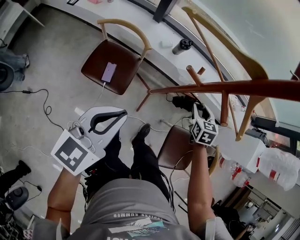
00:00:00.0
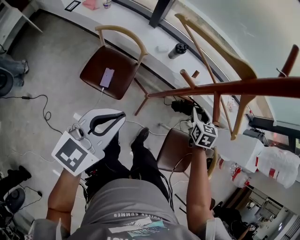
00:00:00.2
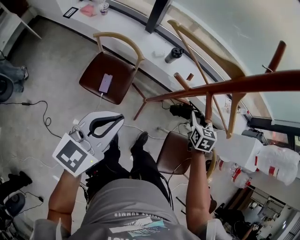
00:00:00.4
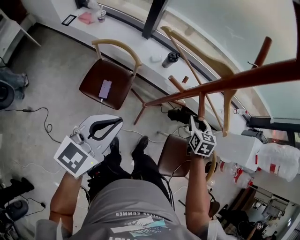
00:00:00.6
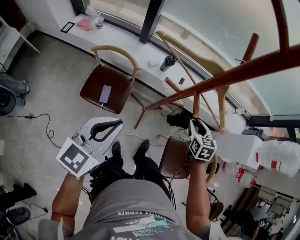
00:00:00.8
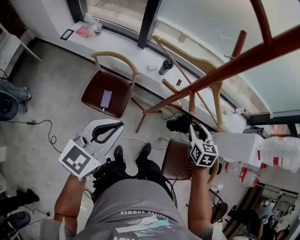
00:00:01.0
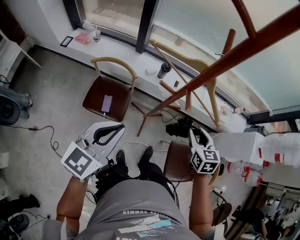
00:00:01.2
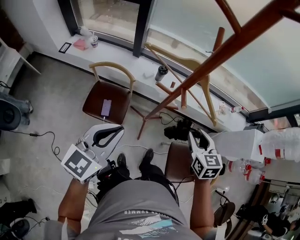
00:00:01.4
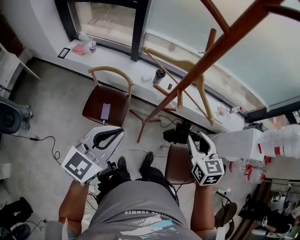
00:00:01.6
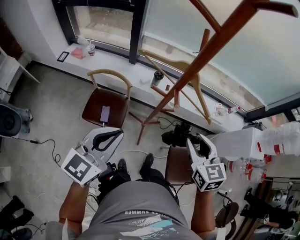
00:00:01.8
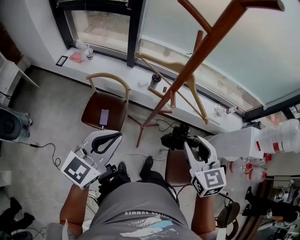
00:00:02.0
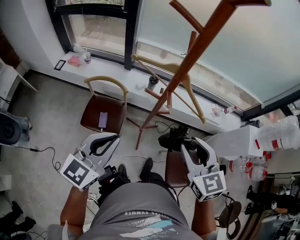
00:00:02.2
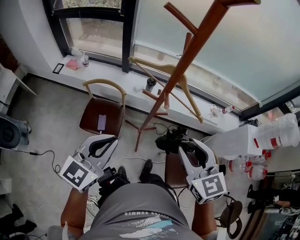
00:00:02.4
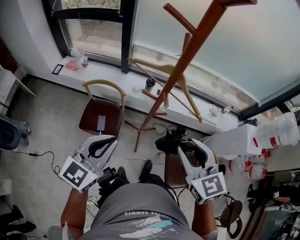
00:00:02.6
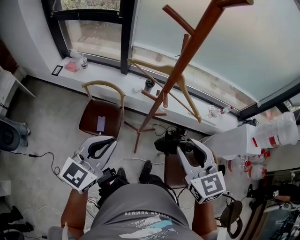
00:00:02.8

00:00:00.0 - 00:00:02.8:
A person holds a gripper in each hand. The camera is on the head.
00:00:00.0 - 00:00:01.4: The right gripper travels upward and backward by roughly 25 cm, while the left gripper shifts about 10 cm upward.
00:00:01.4 - 00:00:02.8: The left gripper ends up approximately 5 cm from where it was; the right gripper heads upward and backward, covering roughly 20 cm.

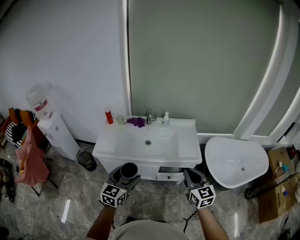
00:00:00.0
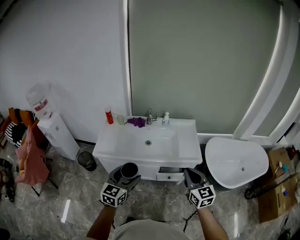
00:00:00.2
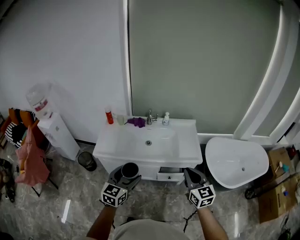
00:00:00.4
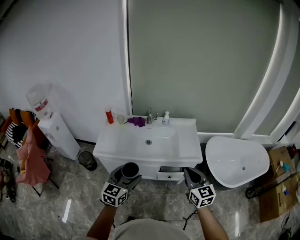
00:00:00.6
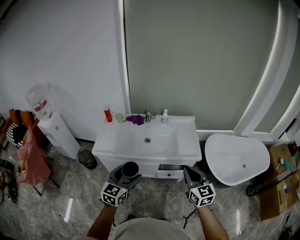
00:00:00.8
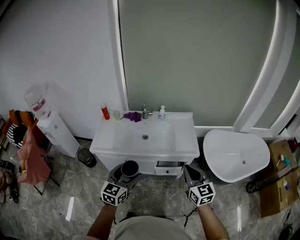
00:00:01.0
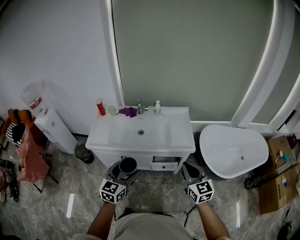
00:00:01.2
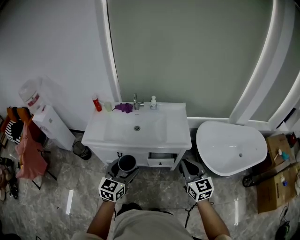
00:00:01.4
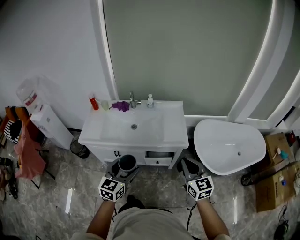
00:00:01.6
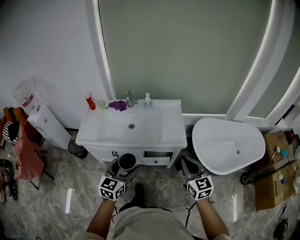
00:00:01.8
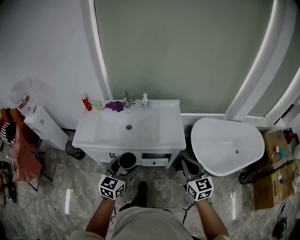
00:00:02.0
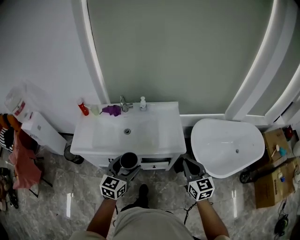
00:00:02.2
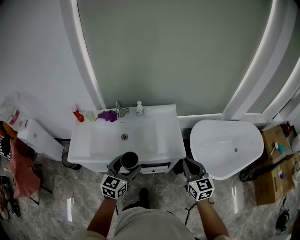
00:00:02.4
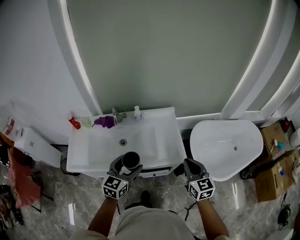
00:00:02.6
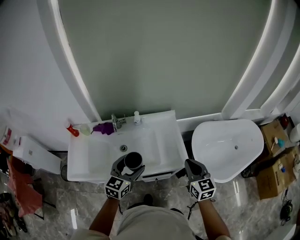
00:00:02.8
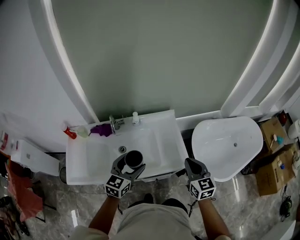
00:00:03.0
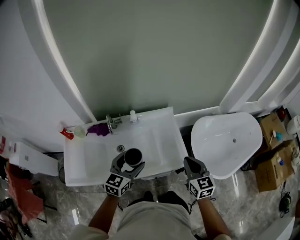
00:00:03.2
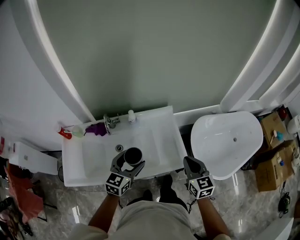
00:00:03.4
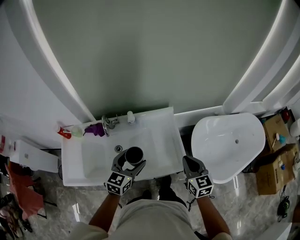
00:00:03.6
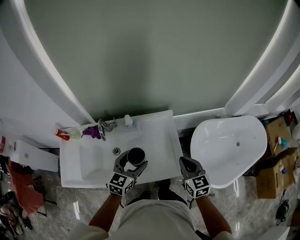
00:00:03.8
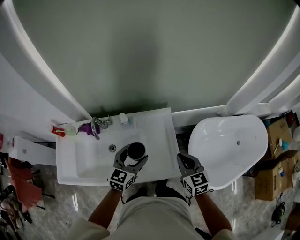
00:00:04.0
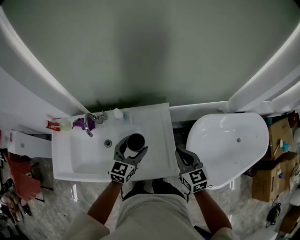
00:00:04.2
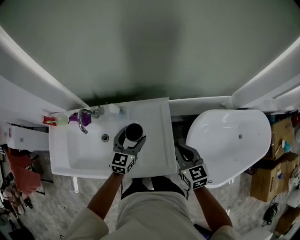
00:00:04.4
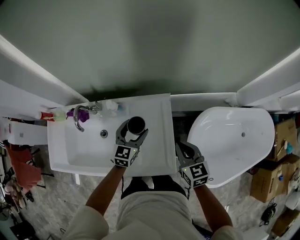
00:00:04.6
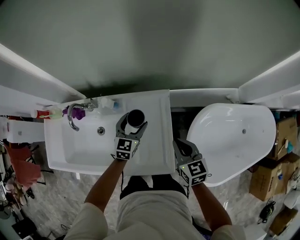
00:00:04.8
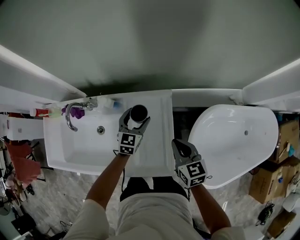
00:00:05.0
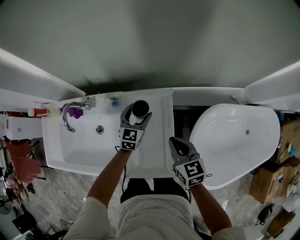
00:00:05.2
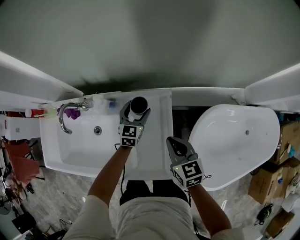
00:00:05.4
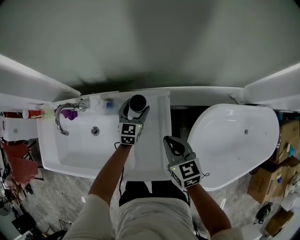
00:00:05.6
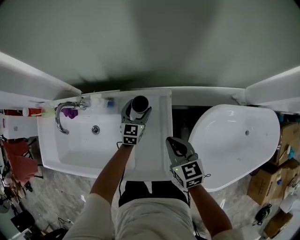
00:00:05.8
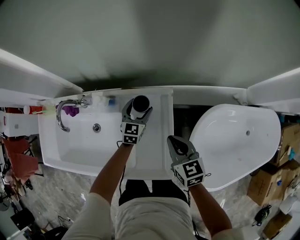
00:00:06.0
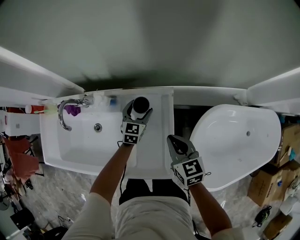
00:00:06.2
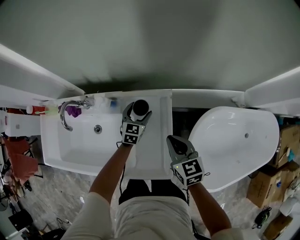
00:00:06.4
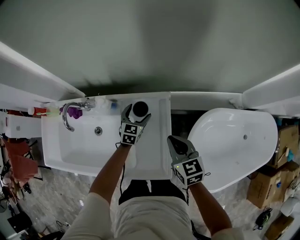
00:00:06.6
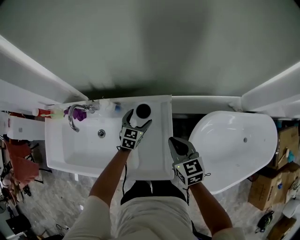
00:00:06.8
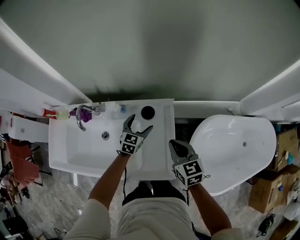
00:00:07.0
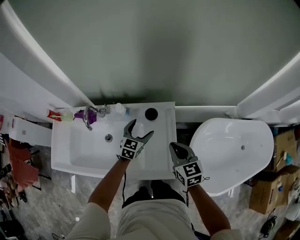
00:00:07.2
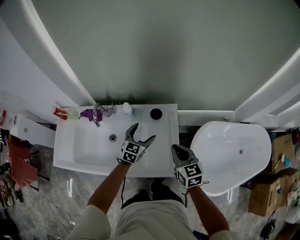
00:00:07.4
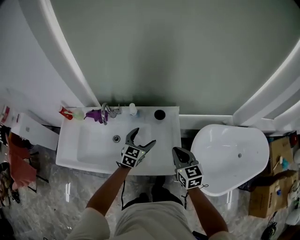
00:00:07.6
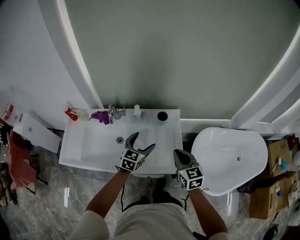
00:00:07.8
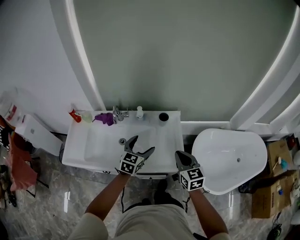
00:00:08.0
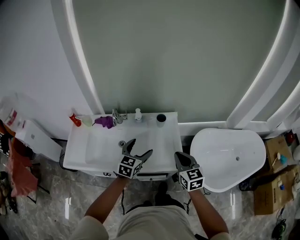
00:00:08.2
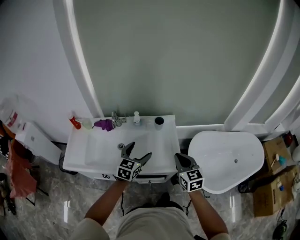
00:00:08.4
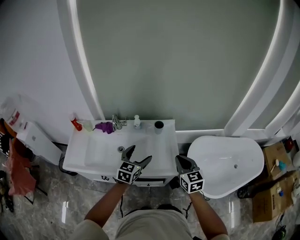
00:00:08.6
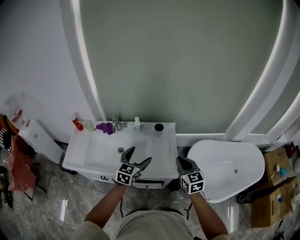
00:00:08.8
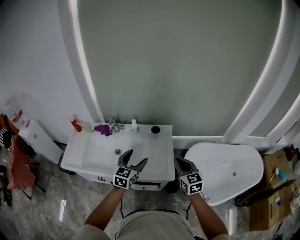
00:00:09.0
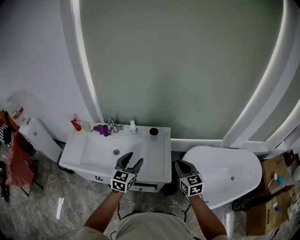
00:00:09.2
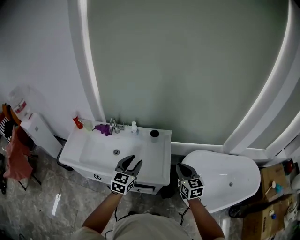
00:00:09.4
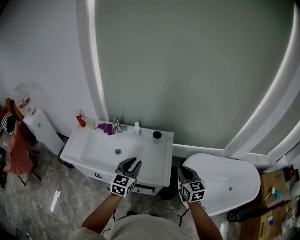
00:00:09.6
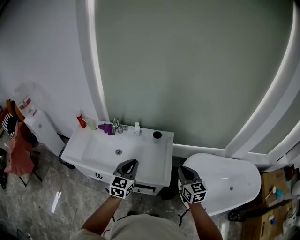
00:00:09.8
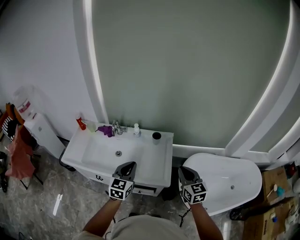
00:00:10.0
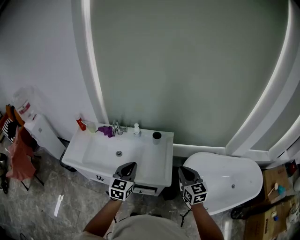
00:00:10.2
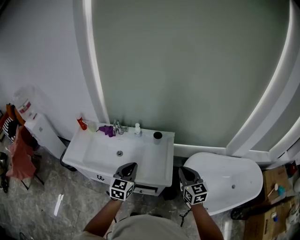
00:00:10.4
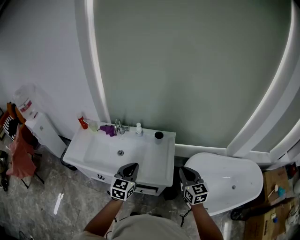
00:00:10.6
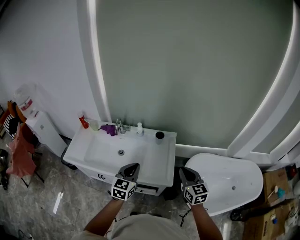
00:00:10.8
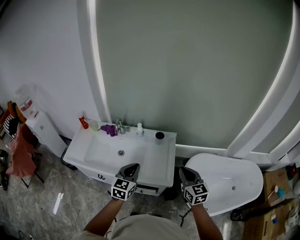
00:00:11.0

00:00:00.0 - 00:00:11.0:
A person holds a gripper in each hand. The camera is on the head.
00:00:00.0 - 00:00:01.6: Both grippers move to the right, about 15 cm.
00:00:01.6 - 00:00:03.2: Both grippers move forward, approximately 30 cm.
00:00:03.2 - 00:00:04.8: The left gripper travels forward, downward and to the right by some 35 cm, while the right gripper is displaced forward and downward by approximately 25 cm, and rotates roughly 20 degrees.
00:00:04.8 - 00:00:06.2: The right gripper changes place by roughly 5 cm. The left gripper is displaced downward and forward by some 15 cm.
00:00:06.2 - 00:00:07.8: Both grippers move backward, upward and to the left, some 30 cm.
00:00:07.8 - 00:00:09.4: The left gripper moves backward and upward, about 20 cm, and closes up. The right gripper travels to the right, backward and upward by some 15 cm.
00:00:09.4 - 00:00:11.0: The left gripper closes up.

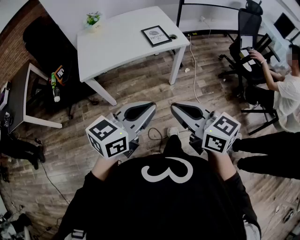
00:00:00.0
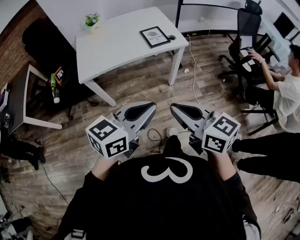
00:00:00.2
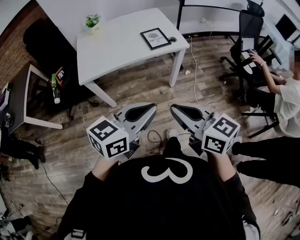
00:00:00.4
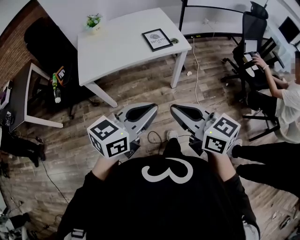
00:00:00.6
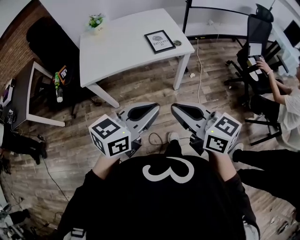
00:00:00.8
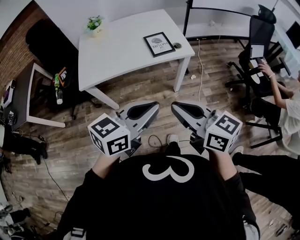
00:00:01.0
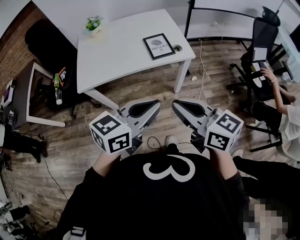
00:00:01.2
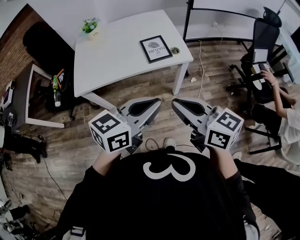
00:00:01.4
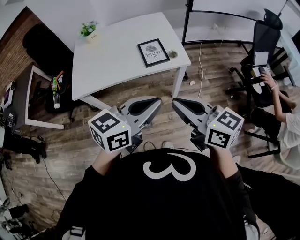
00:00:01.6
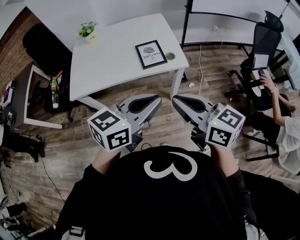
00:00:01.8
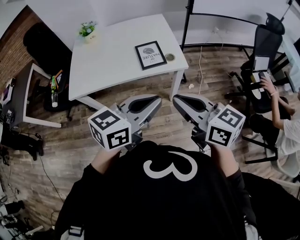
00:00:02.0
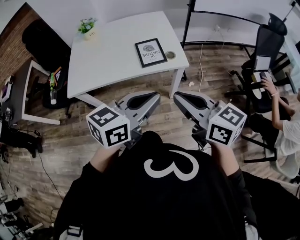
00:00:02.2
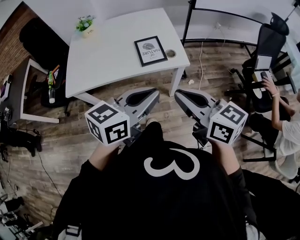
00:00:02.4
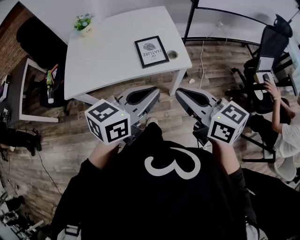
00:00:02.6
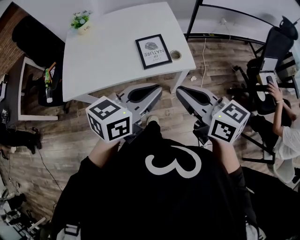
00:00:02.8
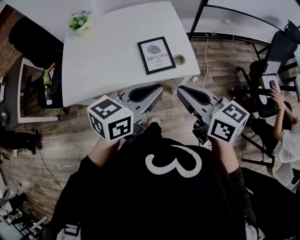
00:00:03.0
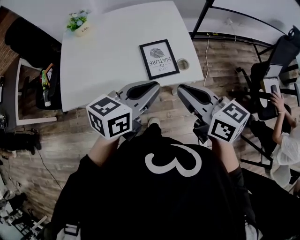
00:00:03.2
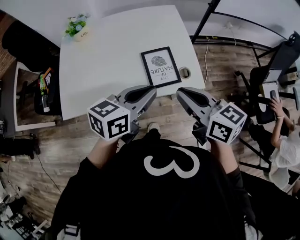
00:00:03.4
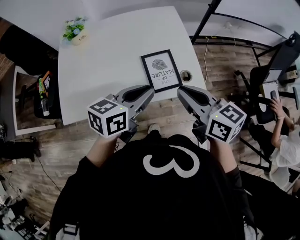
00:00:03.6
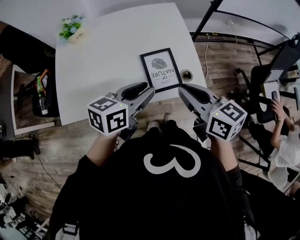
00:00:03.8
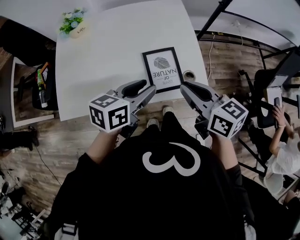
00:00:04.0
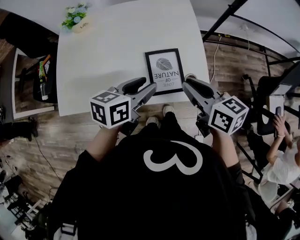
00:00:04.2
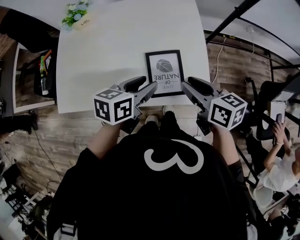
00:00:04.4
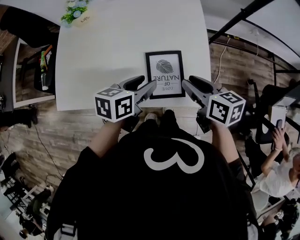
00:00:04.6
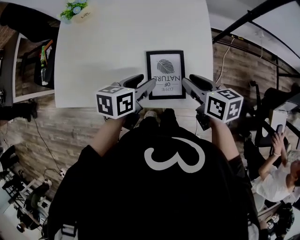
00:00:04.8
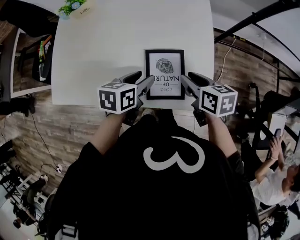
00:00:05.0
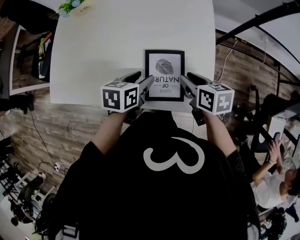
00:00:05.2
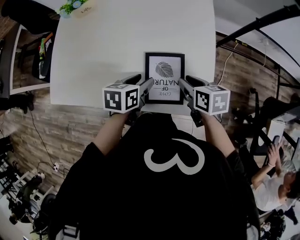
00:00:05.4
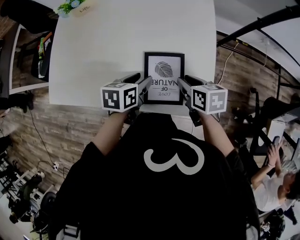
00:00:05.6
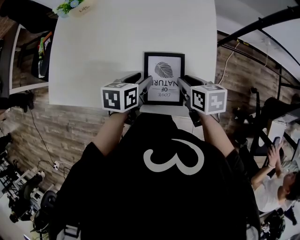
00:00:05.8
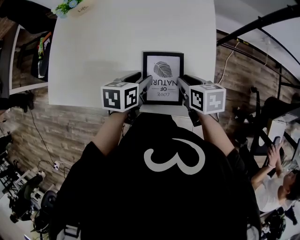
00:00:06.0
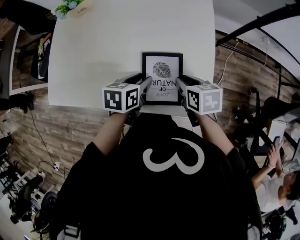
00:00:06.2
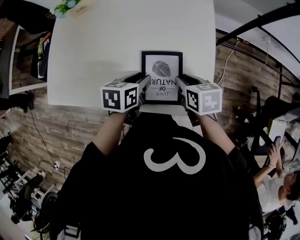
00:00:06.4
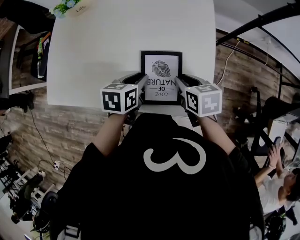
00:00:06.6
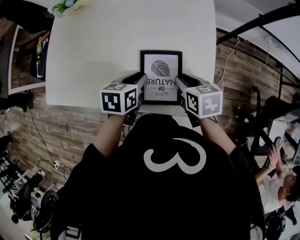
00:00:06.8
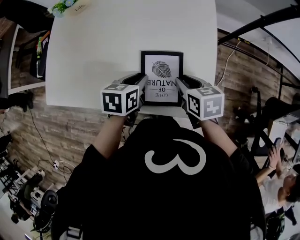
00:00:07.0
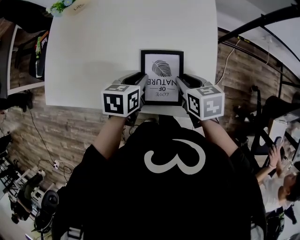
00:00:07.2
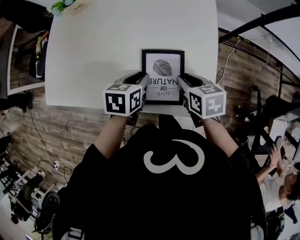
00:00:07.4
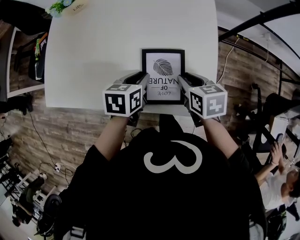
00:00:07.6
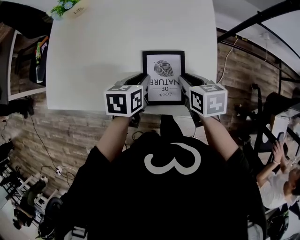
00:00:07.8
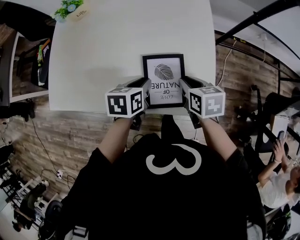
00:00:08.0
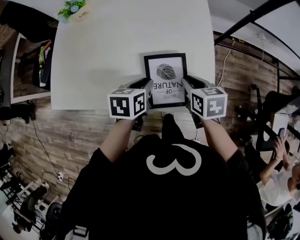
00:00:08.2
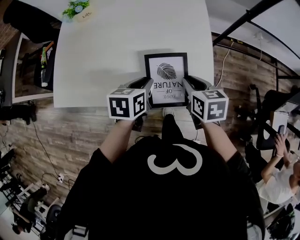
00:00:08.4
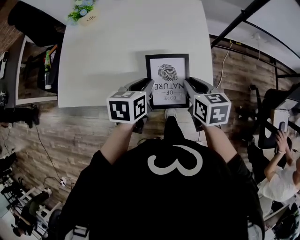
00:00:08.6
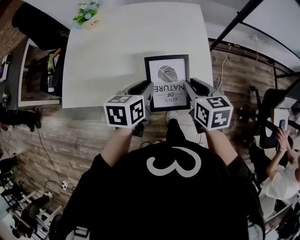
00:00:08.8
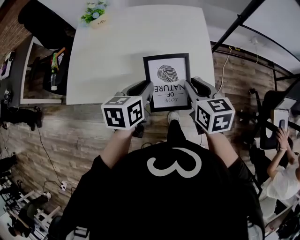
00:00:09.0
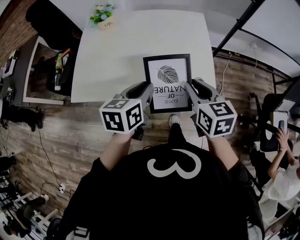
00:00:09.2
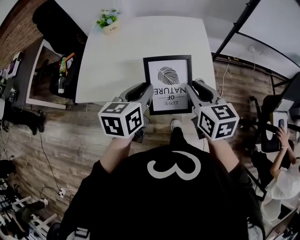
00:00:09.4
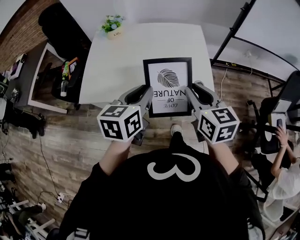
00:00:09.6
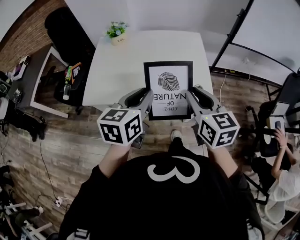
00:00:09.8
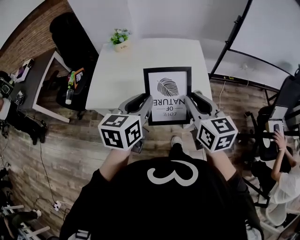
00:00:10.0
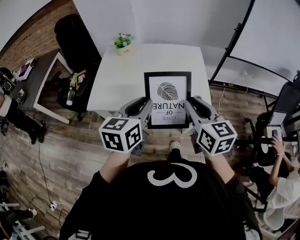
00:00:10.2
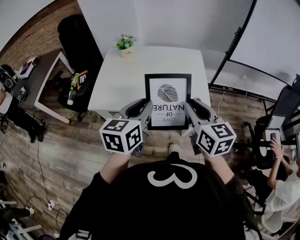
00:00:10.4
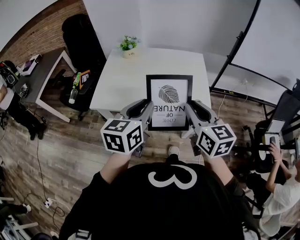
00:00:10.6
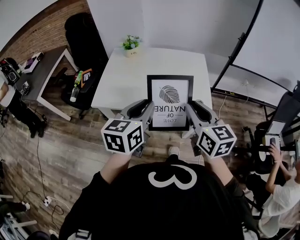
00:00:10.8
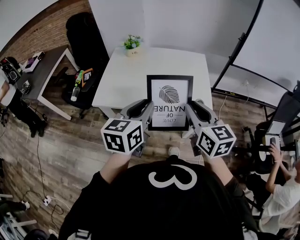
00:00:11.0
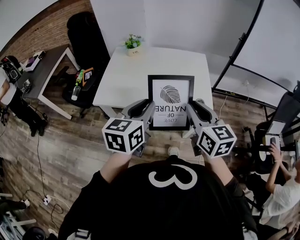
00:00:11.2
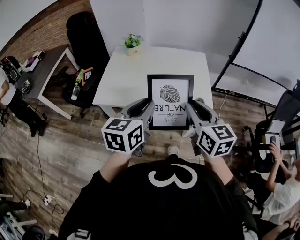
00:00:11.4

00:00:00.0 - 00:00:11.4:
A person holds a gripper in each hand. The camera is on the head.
00:00:00.0 - 00:00:01.4: Both grippers move forward and to the right, approximately 20 cm.
00:00:01.4 - 00:00:02.8: Both grippers travel together forward, some 15 cm.
00:00:02.8 - 00:00:04.2: The left gripper travels forward, downward and to the left by approximately 25 cm, swivels some 20 degrees, and opens up. Meanwhile the right gripper goes about 25 cm forward and downward.
00:00:04.2 - 00:00:05.6: The grippers both shift downward and forward by approximately 20 cm. The right gripper changes its angle by roughly 30 degrees, and opens. Meanwhile the left gripper changes its angle by about 30 degrees.
00:00:05.6 - 00:00:07.2: The left gripper closes up.
00:00:07.2 - 00:00:08.6: The grippers both shift upward by approximately 10 cm.
00:00:08.6 - 00:00:10.0: The two grippers go roughly 25 cm upward and backward. The right gripper swivels about 30 degrees, while the left gripper rotates roughly 30 degrees.
00:00:10.0 - 00:00:11.4: The grippers make only small movements.
